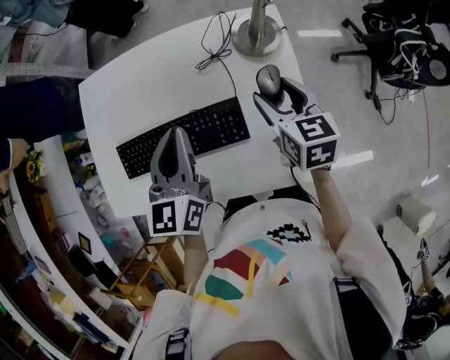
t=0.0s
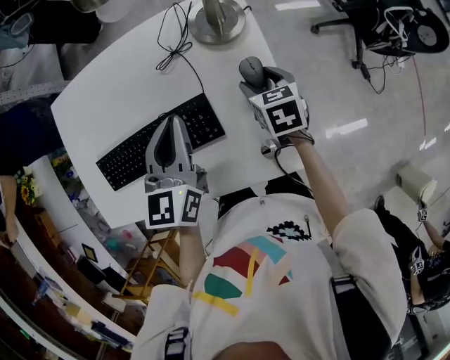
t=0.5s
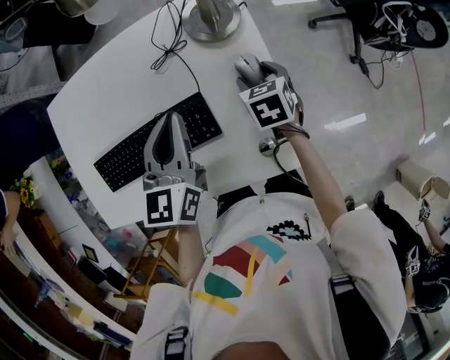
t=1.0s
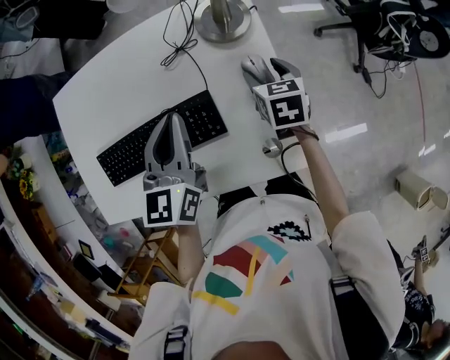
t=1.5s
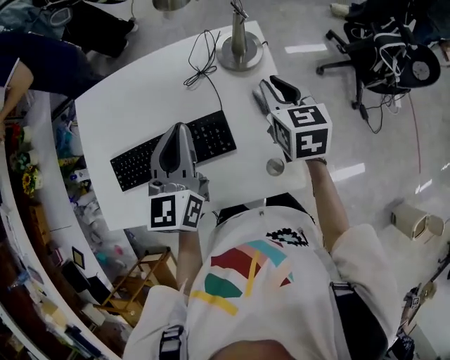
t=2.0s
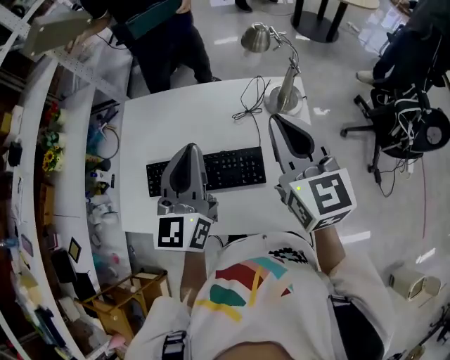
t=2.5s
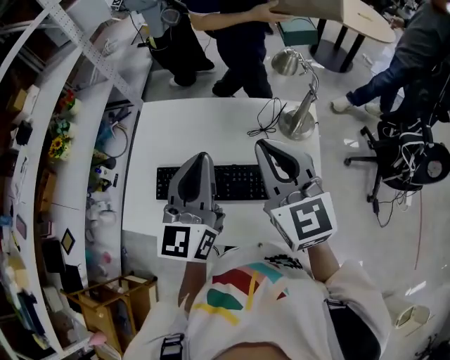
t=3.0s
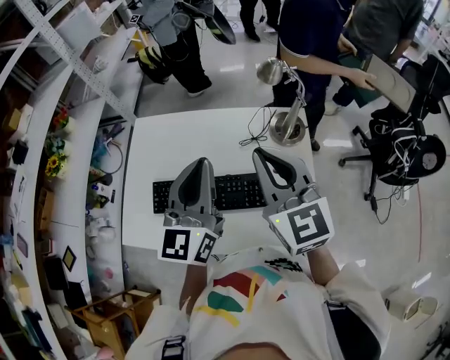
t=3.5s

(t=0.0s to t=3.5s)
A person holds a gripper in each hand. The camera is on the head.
t=0.0s - t=2.0s: The right gripper moves to the right, roughly 5 cm, travels downward and back again, about 15 cm each way, and closes its fingers.
t=2.0s - t=3.5s: The left gripper is displaced upward and to the left by approximately 15 cm. The right gripper goes roughly 30 cm upward and to the left, and swivels some 40 degrees.

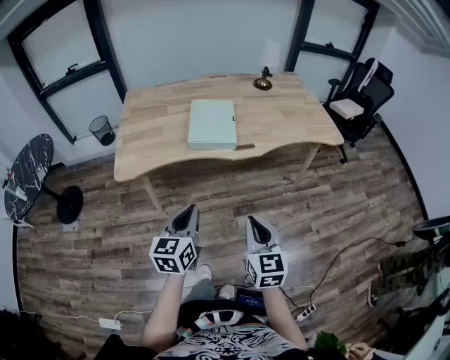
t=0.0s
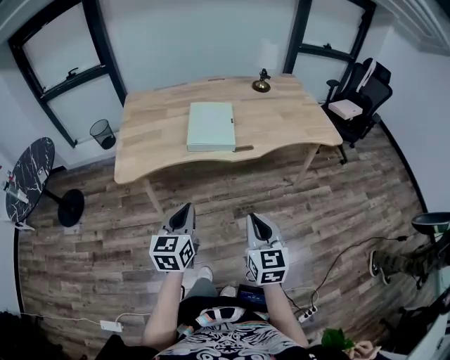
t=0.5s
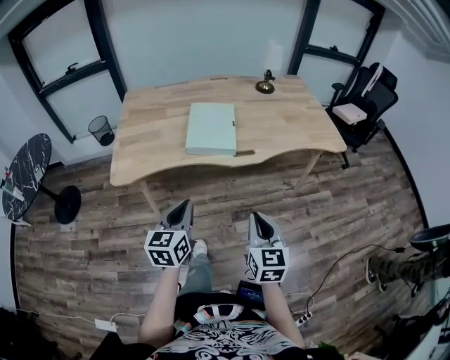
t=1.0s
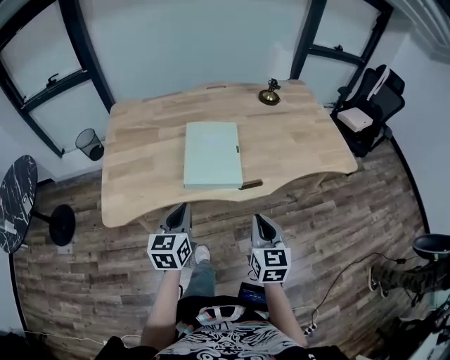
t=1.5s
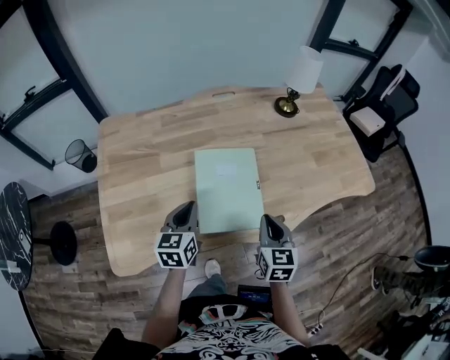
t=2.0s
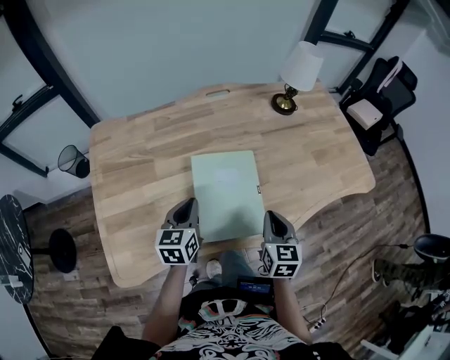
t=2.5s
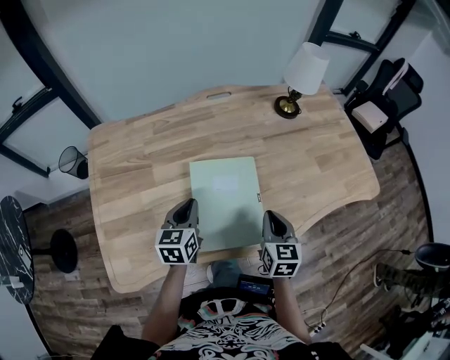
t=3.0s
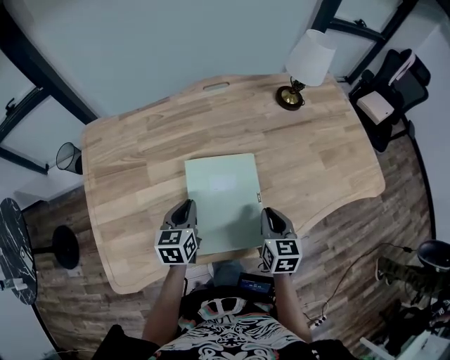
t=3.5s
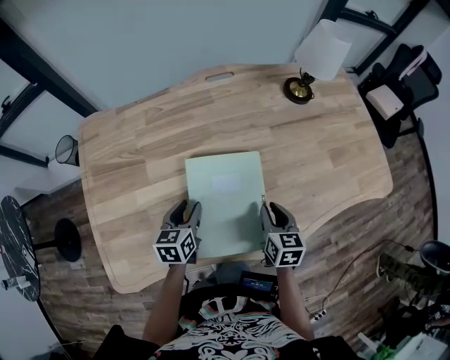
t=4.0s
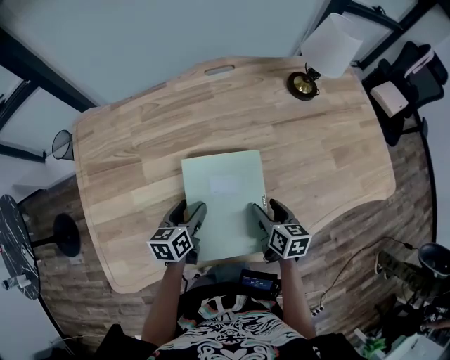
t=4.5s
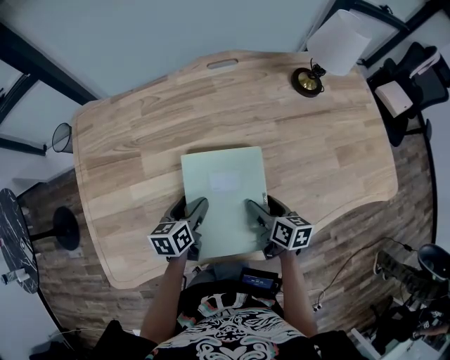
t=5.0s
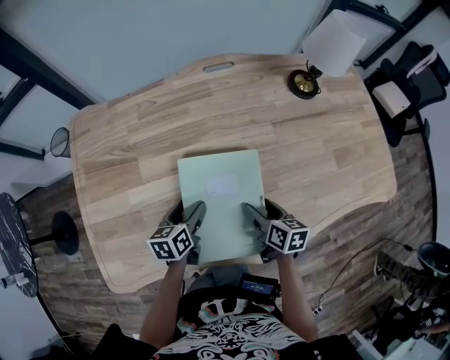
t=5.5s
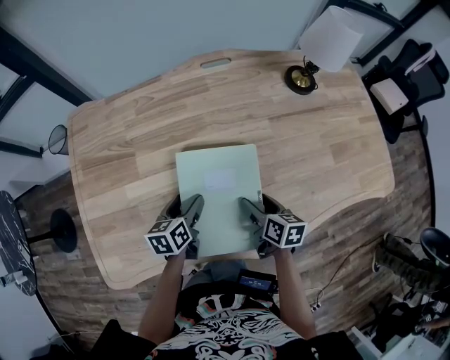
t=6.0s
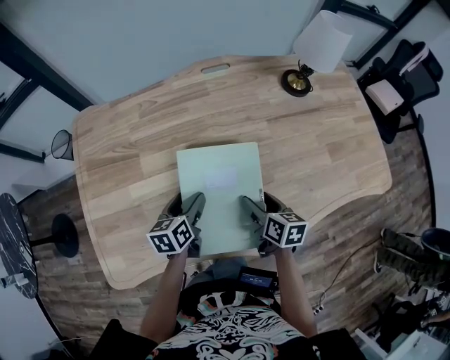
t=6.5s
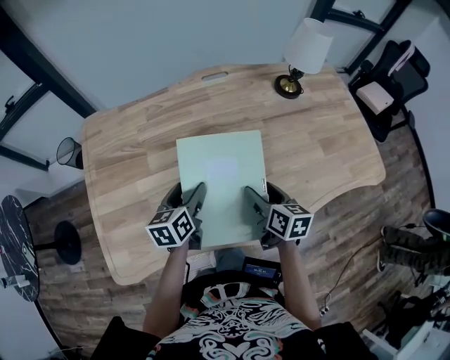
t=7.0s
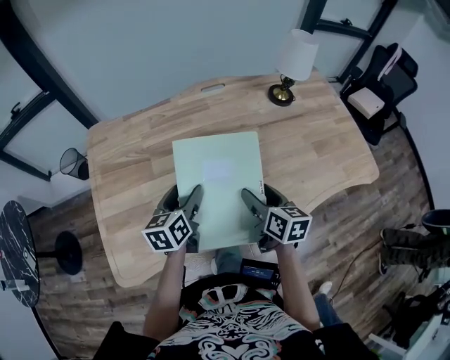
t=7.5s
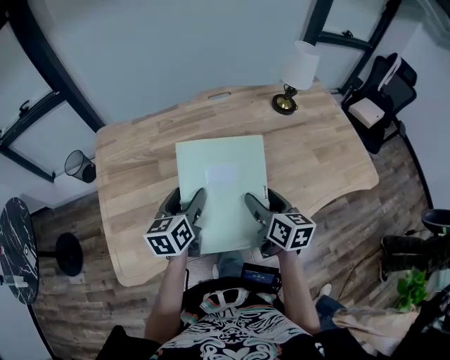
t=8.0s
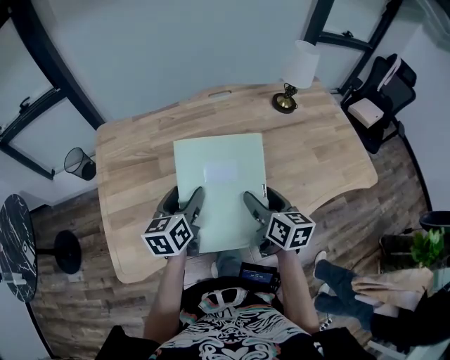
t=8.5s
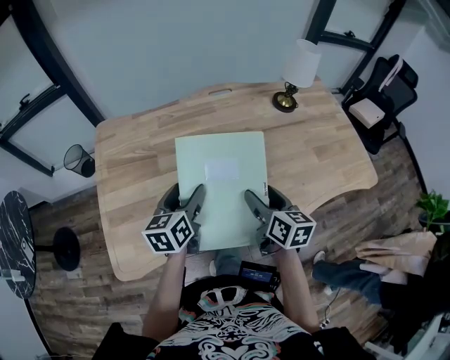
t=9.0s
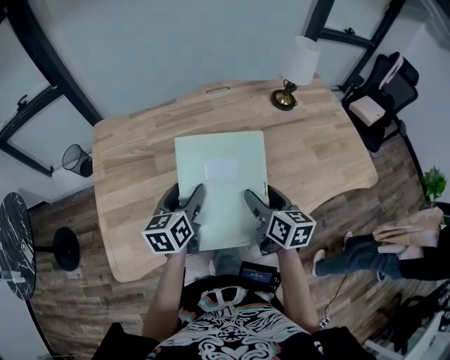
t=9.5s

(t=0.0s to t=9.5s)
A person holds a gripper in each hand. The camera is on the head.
t=0.0s - t=2.0s: The two grippers travel together, forward, some 40 cm.
t=2.0s - t=4.0s: The left gripper heads downward and forward, covering about 15 cm, and opens its fingers; the right gripper shifts roughly 15 cm forward and downward.
t=4.0s - t=5.5s: The right gripper changes place by about 5 cm, turns by about 20 degrees, and opens its fingers; the left gripper opens.
t=5.5s - t=7.5s: Both grippers move upward, roughly 15 cm.
t=7.5s - t=9.5s: The grippers make only small movements.

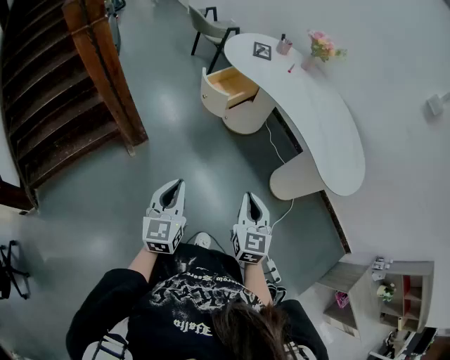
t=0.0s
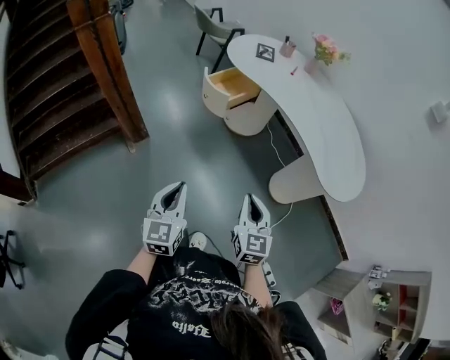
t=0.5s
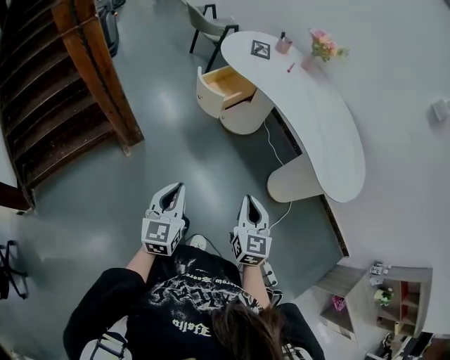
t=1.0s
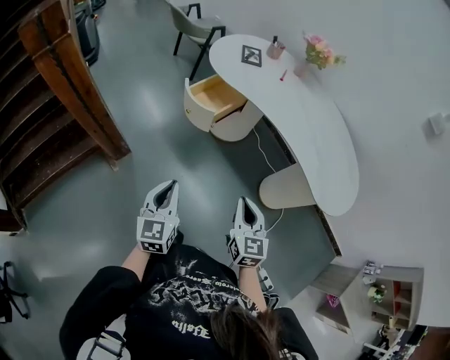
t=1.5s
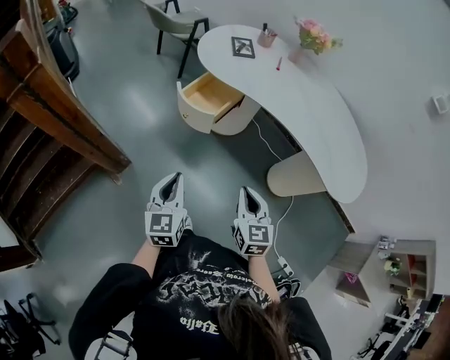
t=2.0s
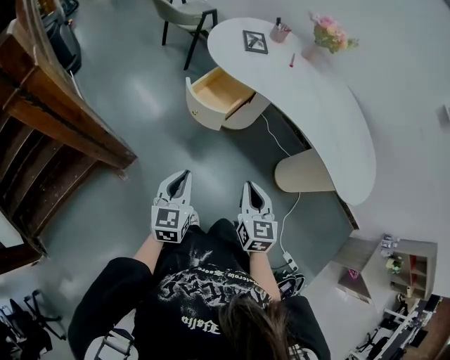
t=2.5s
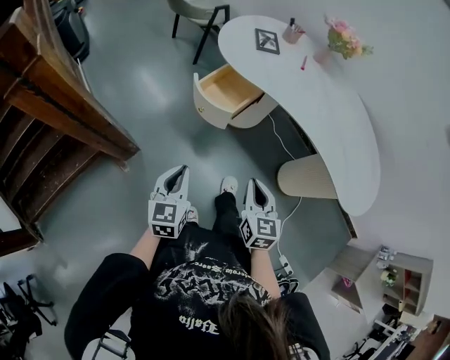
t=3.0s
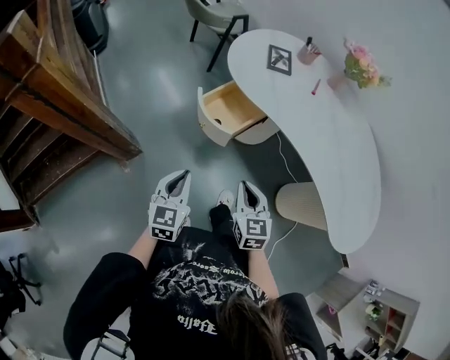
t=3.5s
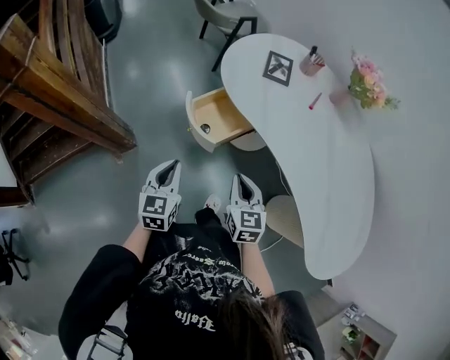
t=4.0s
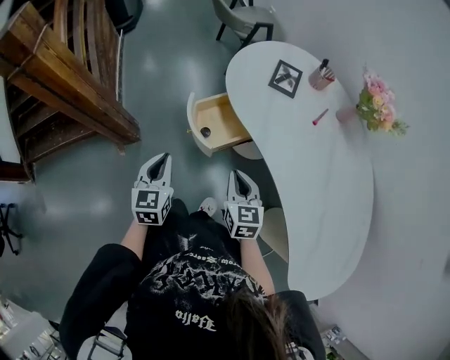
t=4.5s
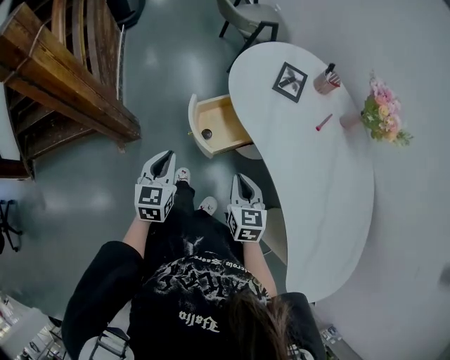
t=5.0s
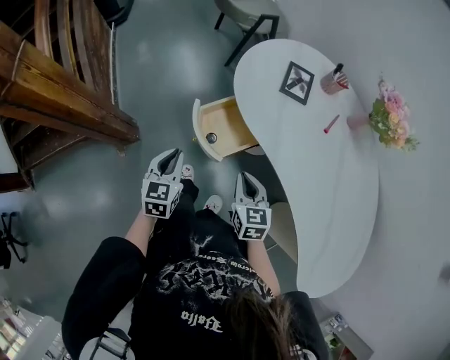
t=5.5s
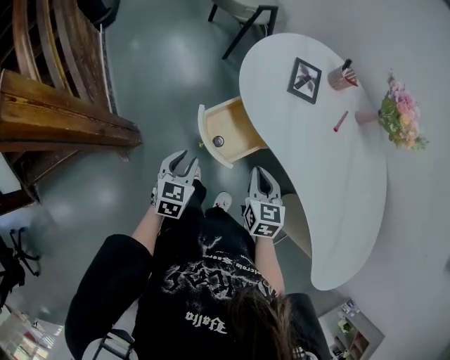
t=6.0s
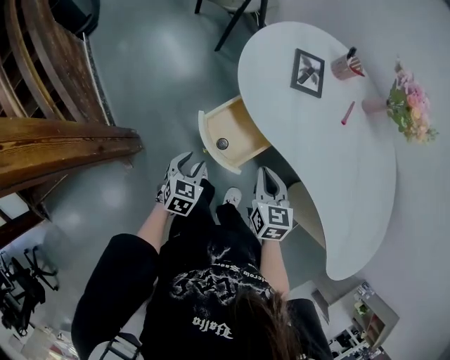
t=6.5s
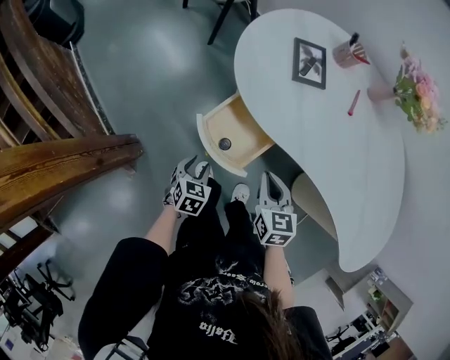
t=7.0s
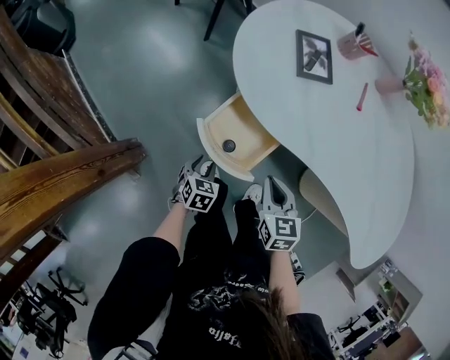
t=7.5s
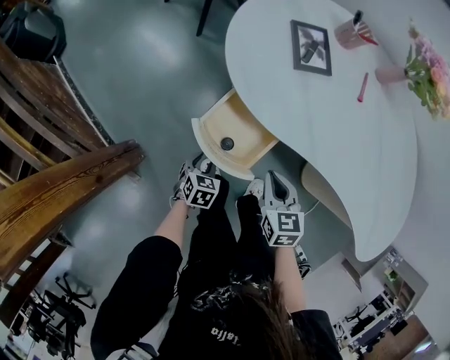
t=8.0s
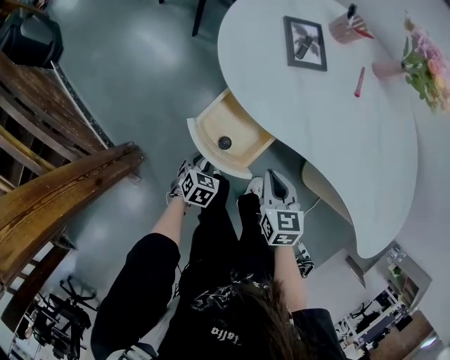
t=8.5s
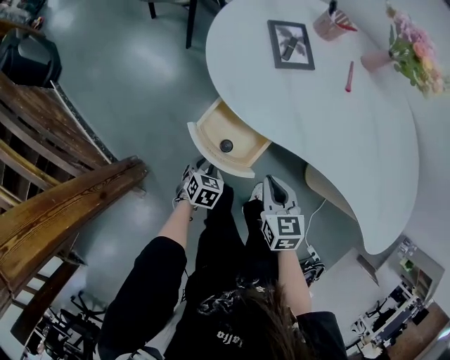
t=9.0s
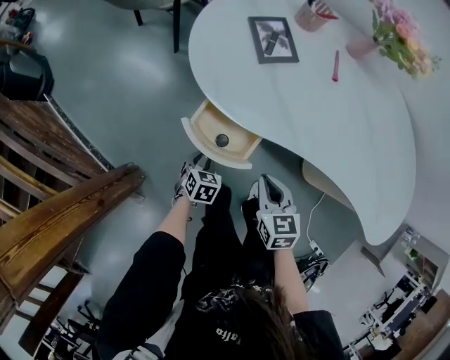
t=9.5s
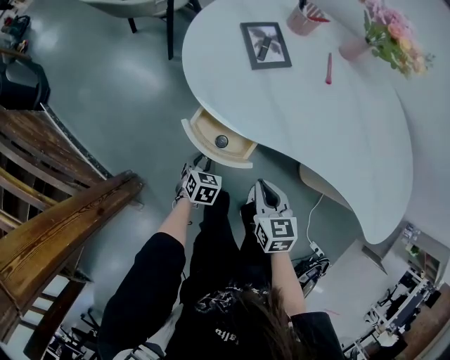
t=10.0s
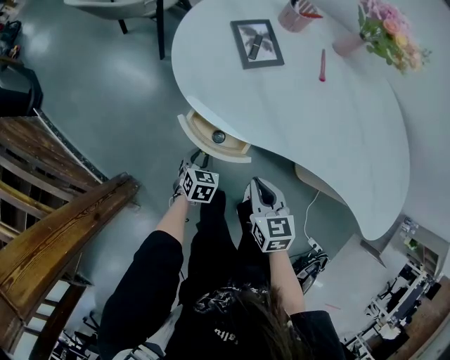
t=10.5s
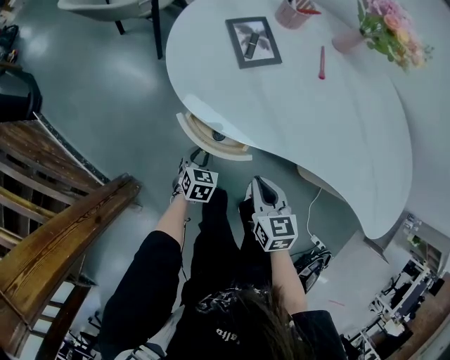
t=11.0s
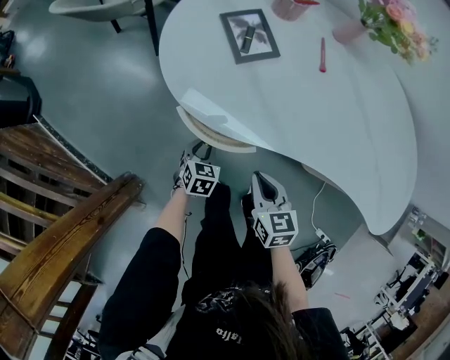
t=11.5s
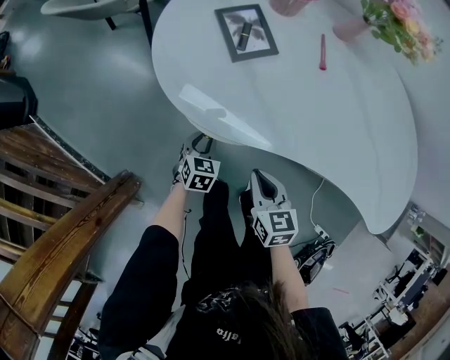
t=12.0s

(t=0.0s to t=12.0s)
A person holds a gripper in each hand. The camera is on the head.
t=0.0s - t=2.0s: Both grippers move forward, roughly 25 cm.
t=2.0s - t=4.0s: Both grippers travel together forward, some 25 cm.
t=4.0s - t=6.0s: The right gripper moves forward, roughly 15 cm. The left gripper shifts approximately 20 cm forward and downward, and opens its fingers.
t=6.0s - t=8.0s: The right gripper is displaced downward by some 10 cm; the left gripper moves downward, about 20 cm, and turns by some 30 degrees.
t=8.0s - t=10.0s: The left gripper shifts approximately 5 cm forward.
t=10.0s - t=12.0s: The left gripper heads forward, covering approximately 10 cm.

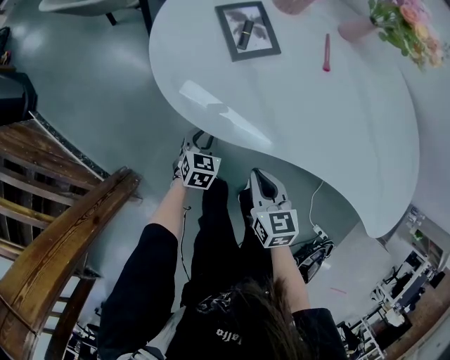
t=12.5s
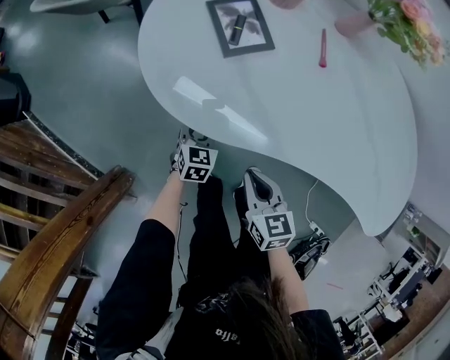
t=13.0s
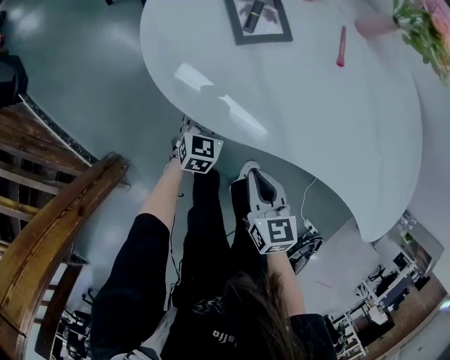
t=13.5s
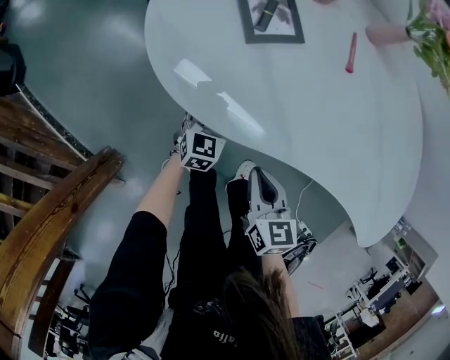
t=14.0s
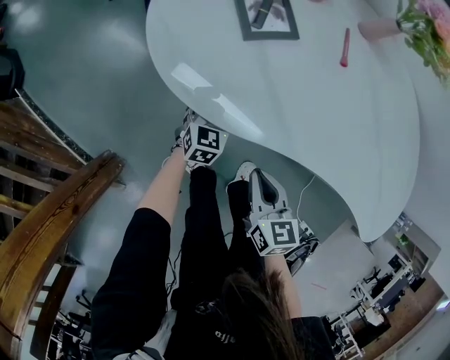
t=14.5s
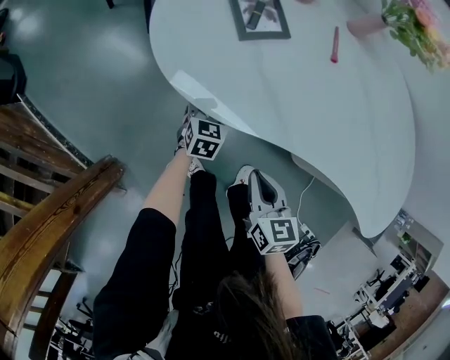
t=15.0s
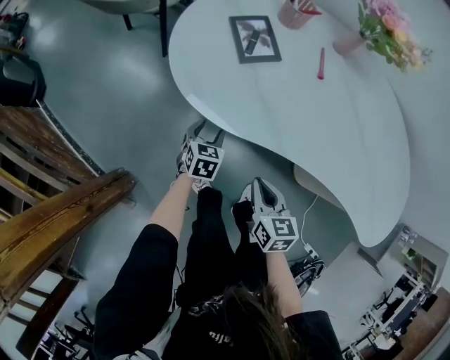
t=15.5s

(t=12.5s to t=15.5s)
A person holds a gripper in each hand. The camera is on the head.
t=12.5s - t=14.0s: The left gripper moves forward, roughly 5 cm.
t=14.0s - t=15.5s: The grippers both shift backward by approximately 5 cm. The left gripper opens up.
